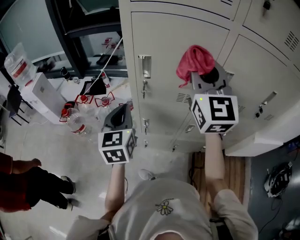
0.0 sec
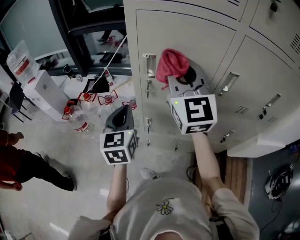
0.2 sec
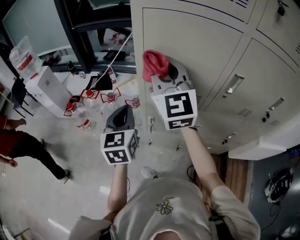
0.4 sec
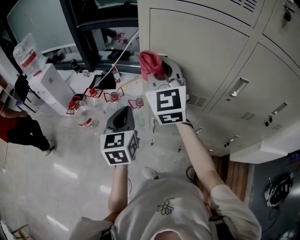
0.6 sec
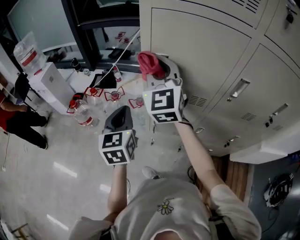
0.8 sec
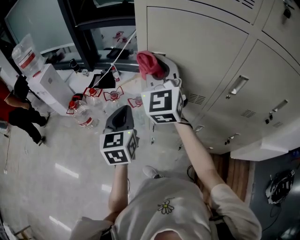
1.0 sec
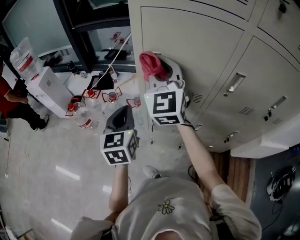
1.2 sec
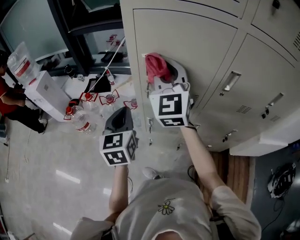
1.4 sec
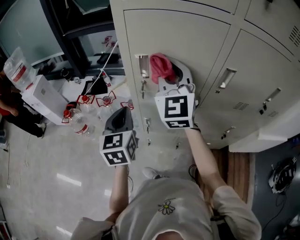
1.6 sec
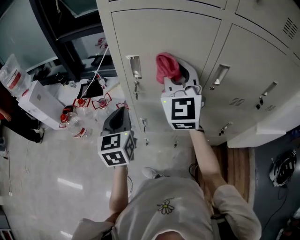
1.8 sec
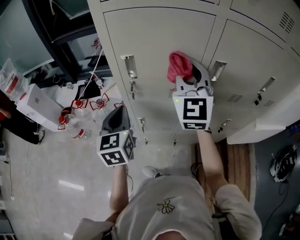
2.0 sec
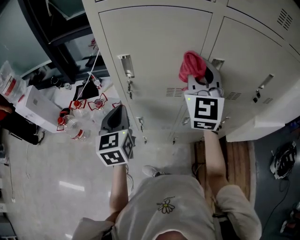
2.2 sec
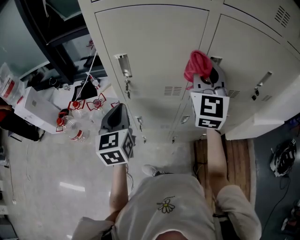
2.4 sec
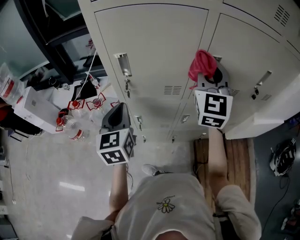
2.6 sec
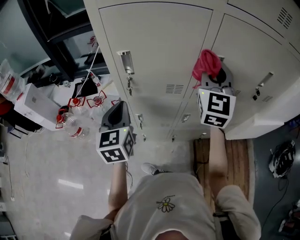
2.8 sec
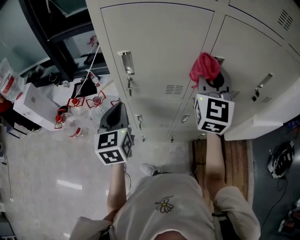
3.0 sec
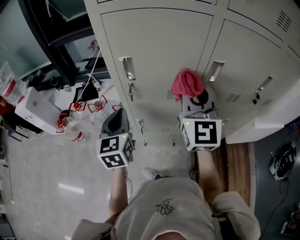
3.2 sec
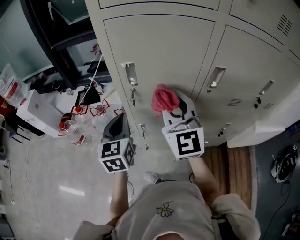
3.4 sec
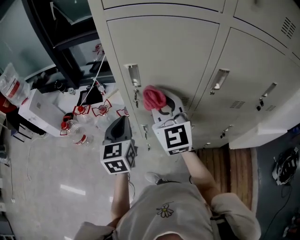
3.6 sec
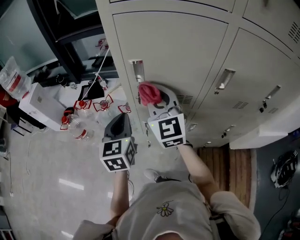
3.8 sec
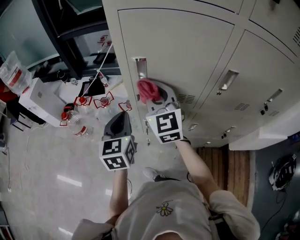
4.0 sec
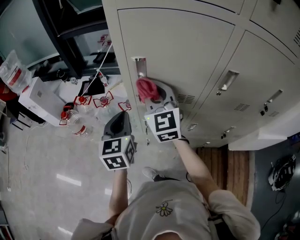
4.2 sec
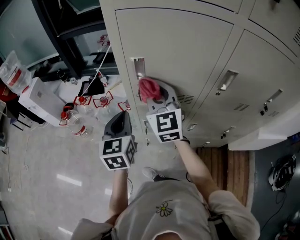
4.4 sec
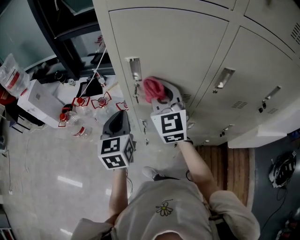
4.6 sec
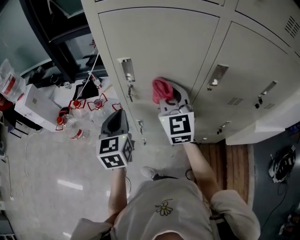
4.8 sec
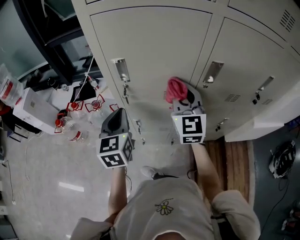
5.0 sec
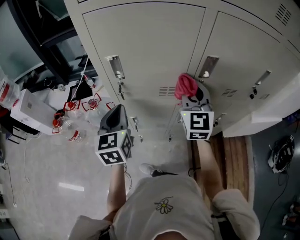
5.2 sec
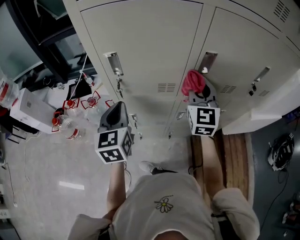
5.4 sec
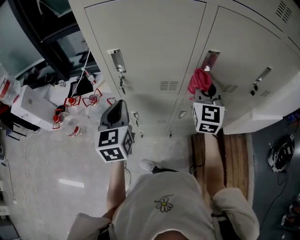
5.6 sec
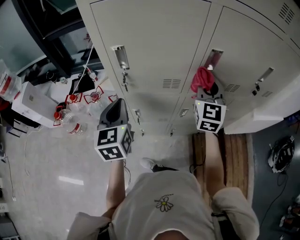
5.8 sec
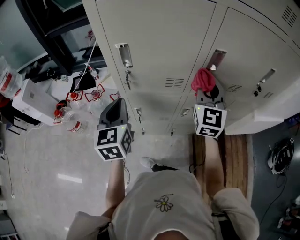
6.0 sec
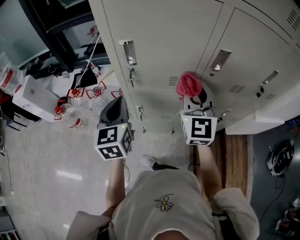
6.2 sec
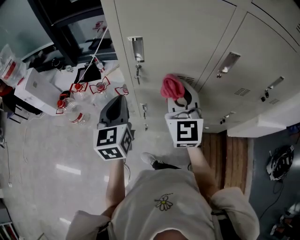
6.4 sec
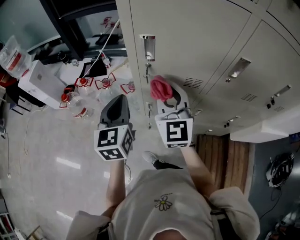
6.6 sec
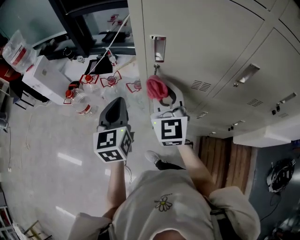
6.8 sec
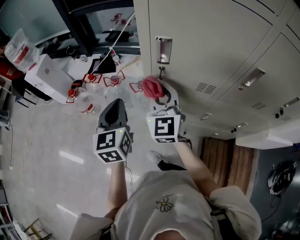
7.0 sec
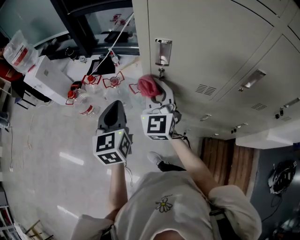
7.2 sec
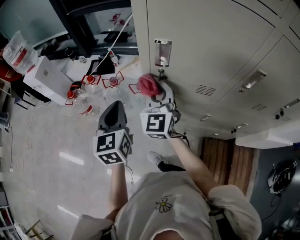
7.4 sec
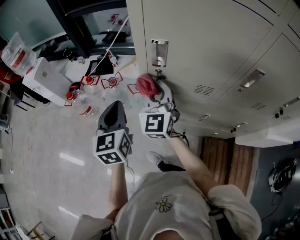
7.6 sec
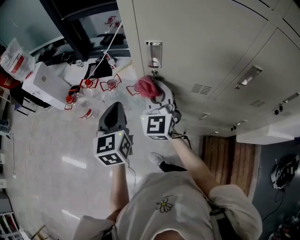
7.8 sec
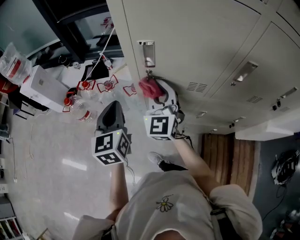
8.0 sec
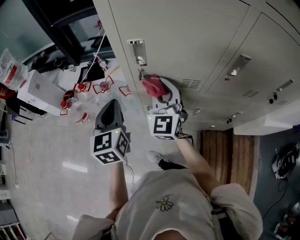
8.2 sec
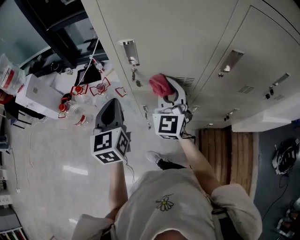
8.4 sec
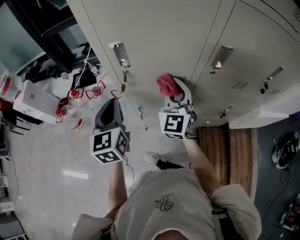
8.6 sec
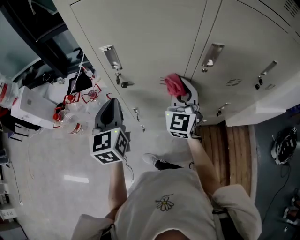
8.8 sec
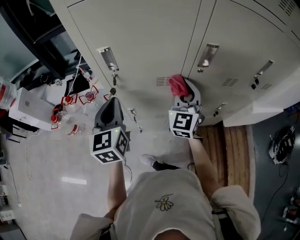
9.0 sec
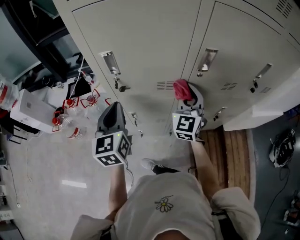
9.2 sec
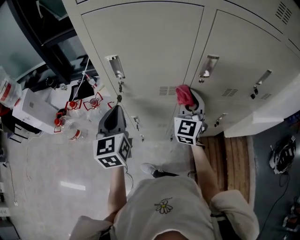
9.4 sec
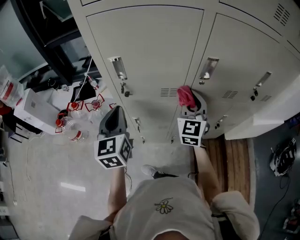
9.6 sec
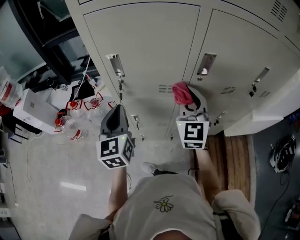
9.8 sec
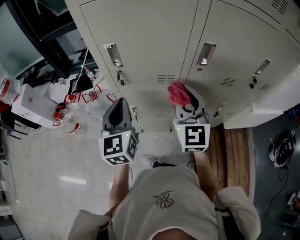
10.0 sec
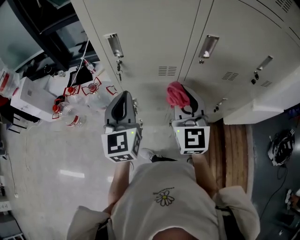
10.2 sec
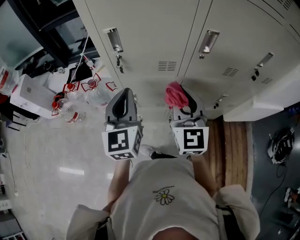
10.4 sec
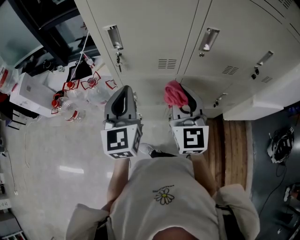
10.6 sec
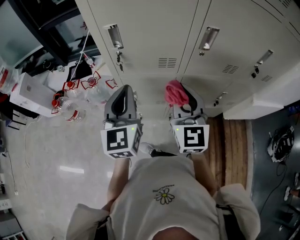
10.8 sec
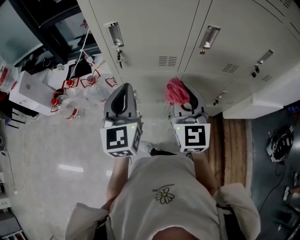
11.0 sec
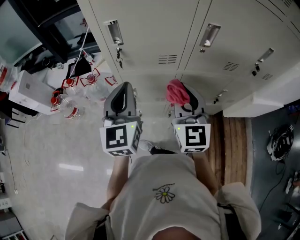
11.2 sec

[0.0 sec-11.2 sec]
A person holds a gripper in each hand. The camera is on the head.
0.0 sec to 1.6 sec: The right gripper is displaced downward, to the left and forward by approximately 10 cm.
1.6 sec to 3.2 sec: The right gripper moves to the right and backward, approximately 10 cm.
3.2 sec to 4.8 sec: The right gripper shifts roughly 10 cm downward, forward and to the left.
4.8 sec to 6.4 sec: The right gripper heads backward, covering roughly 5 cm, and reaches some 15 cm to the right, then returns.
6.4 sec to 8.0 sec: The right gripper heads to the left, forward and downward, covering roughly 15 cm, while the left gripper is displaced to the left by about 5 cm.
8.0 sec to 9.6 sec: The left gripper travels to the right by approximately 10 cm, while the right gripper heads to the right, covering about 25 cm, and rotates some 20 degrees.
9.6 sec to 11.2 sec: The left gripper shifts some 5 cm backward, while the right gripper moves backward and to the left, some 15 cm.

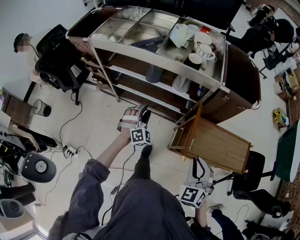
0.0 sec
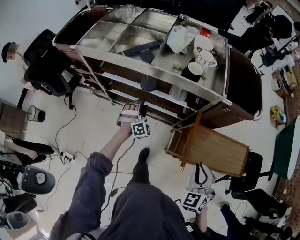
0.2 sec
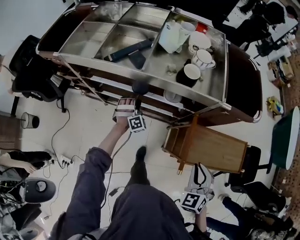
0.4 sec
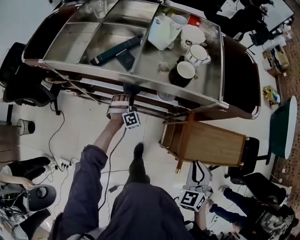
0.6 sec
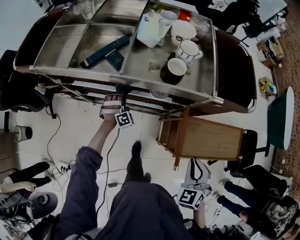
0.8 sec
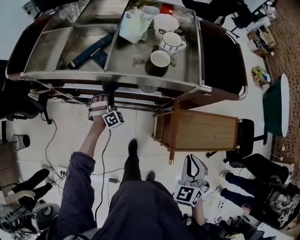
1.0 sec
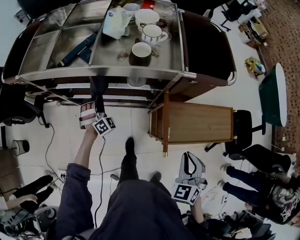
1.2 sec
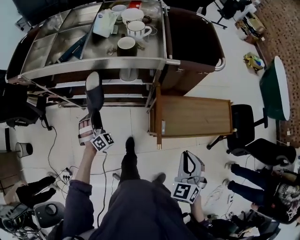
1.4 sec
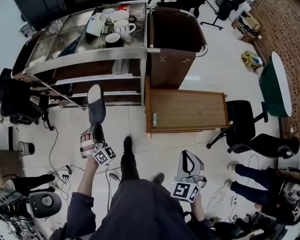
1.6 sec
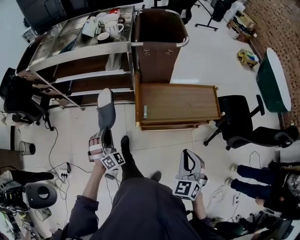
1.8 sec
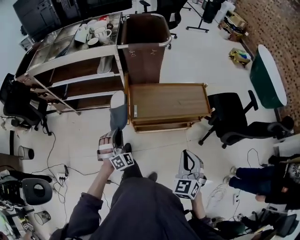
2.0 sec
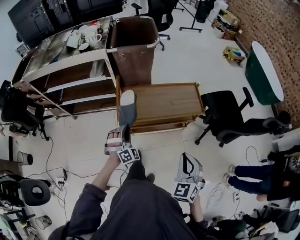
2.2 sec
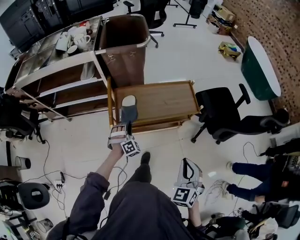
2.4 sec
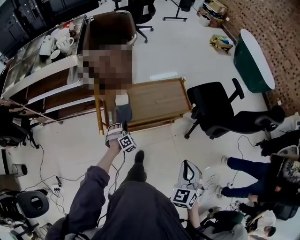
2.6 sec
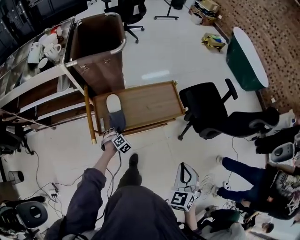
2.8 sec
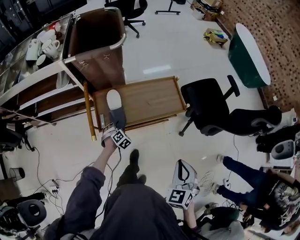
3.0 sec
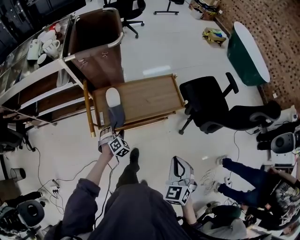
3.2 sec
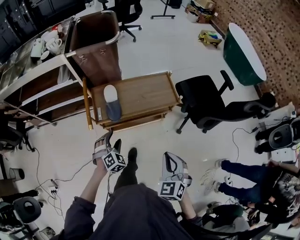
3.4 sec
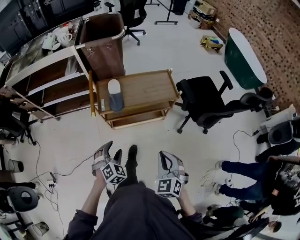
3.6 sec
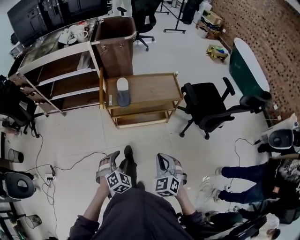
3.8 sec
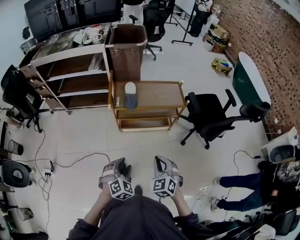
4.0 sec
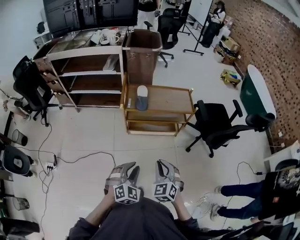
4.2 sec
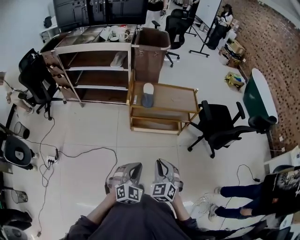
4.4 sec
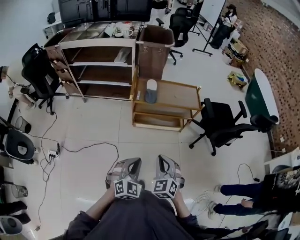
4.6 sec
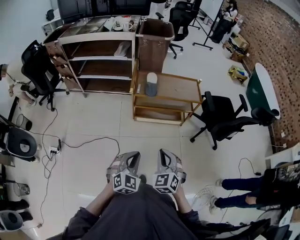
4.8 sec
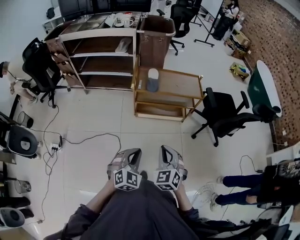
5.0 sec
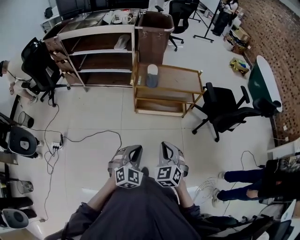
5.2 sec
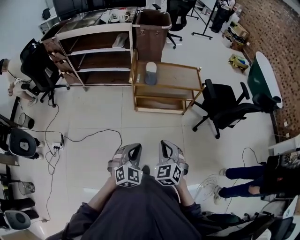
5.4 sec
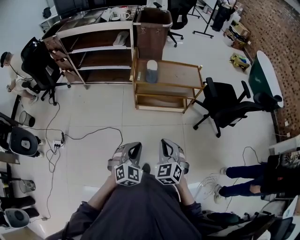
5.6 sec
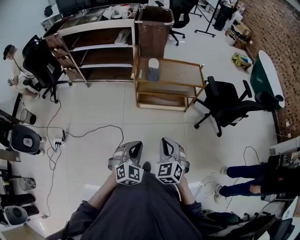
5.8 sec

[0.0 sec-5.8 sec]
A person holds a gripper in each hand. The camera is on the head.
0.0 sec to 1.4 sec: The right gripper goes roughly 10 cm to the right, and goes forward and returns, roughly 10 cm each way, while the left gripper goes forward and returns, about 25 cm each way, and closes.
1.4 sec to 2.8 sec: The left gripper moves to the right, roughly 50 cm, and tips its fingers downward by some 40 degrees; the right gripper moves to the right and backward, some 40 cm.
2.8 sec to 4.4 sec: The left gripper moves backward and upward, about 60 cm, tilts its fingers about 40 degrees upward, and closes up, while the right gripper shifts about 30 cm backward and to the left, and rotates approximately 30 degrees.
4.4 sec to 5.8 sec: The right gripper changes place by about 5 cm, while the left gripper ends up roughly 5 cm from where it was.

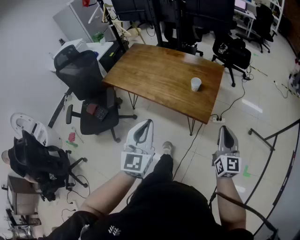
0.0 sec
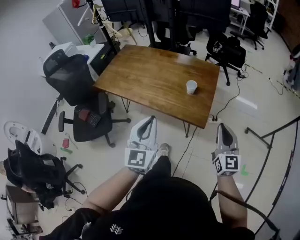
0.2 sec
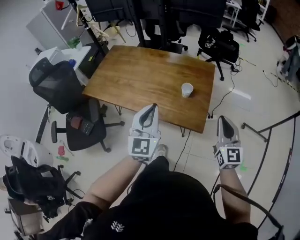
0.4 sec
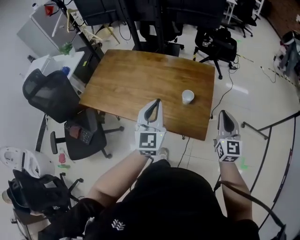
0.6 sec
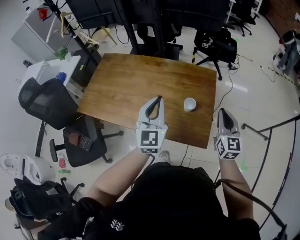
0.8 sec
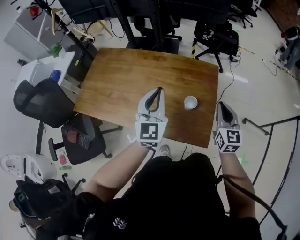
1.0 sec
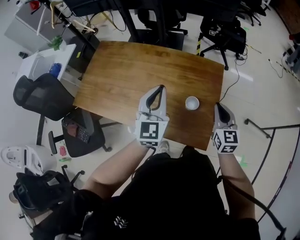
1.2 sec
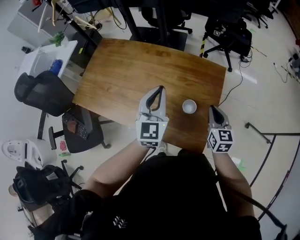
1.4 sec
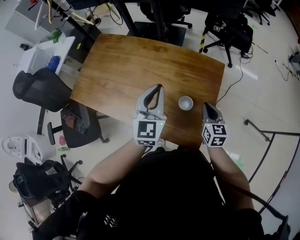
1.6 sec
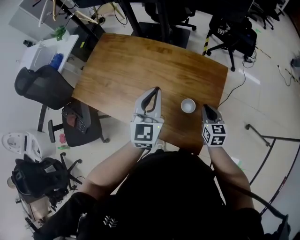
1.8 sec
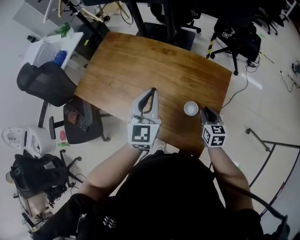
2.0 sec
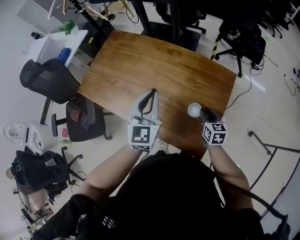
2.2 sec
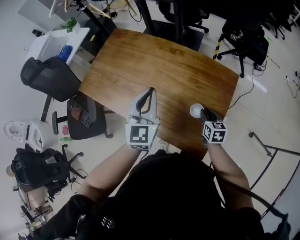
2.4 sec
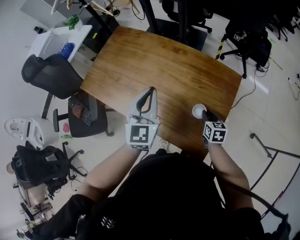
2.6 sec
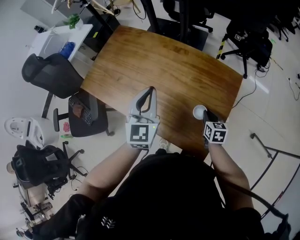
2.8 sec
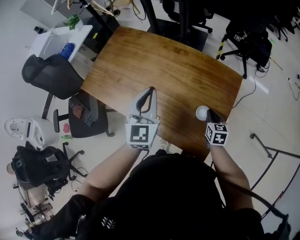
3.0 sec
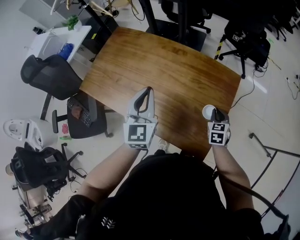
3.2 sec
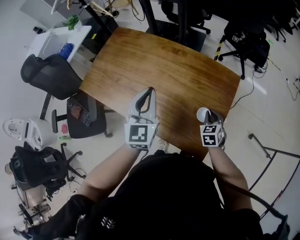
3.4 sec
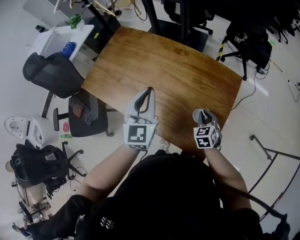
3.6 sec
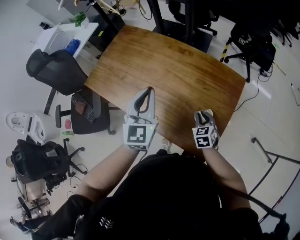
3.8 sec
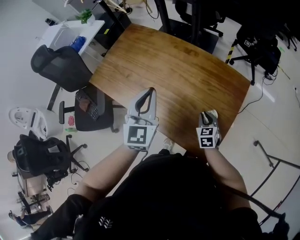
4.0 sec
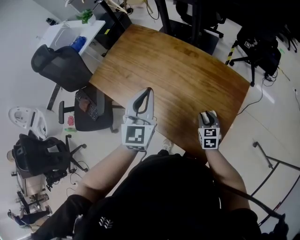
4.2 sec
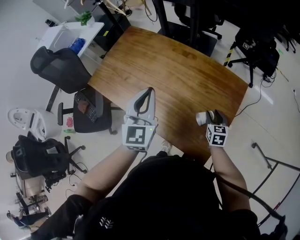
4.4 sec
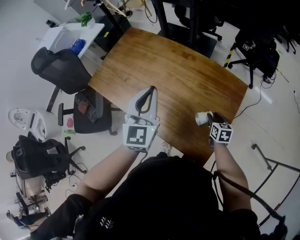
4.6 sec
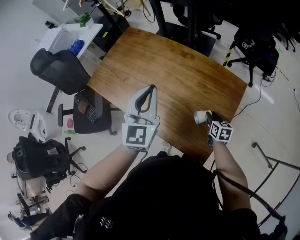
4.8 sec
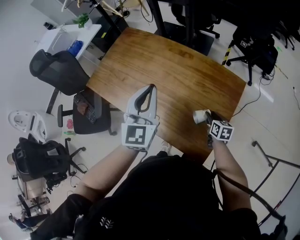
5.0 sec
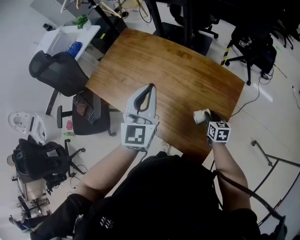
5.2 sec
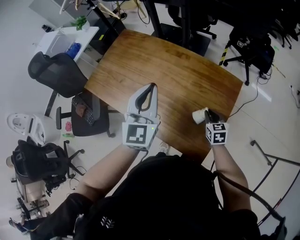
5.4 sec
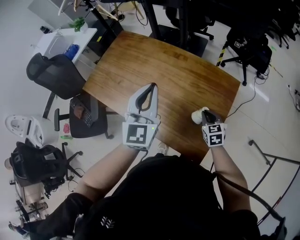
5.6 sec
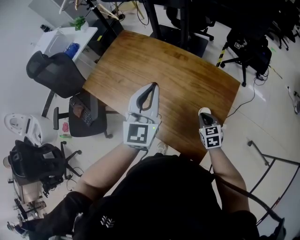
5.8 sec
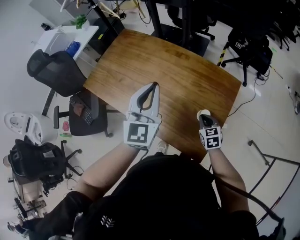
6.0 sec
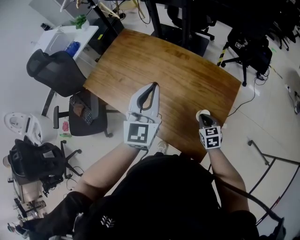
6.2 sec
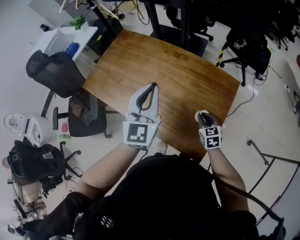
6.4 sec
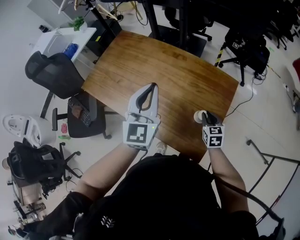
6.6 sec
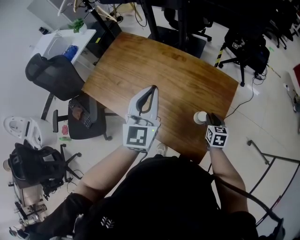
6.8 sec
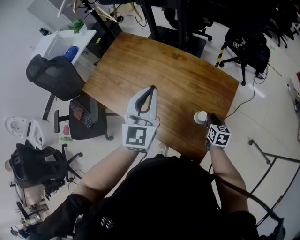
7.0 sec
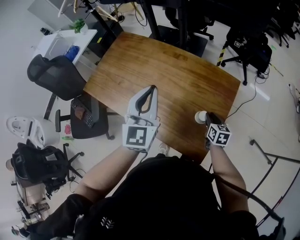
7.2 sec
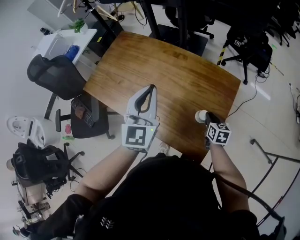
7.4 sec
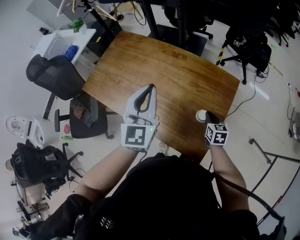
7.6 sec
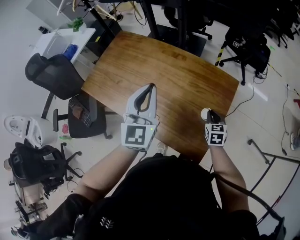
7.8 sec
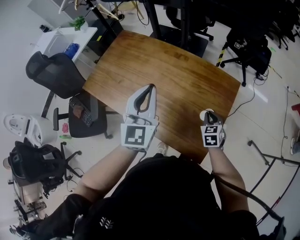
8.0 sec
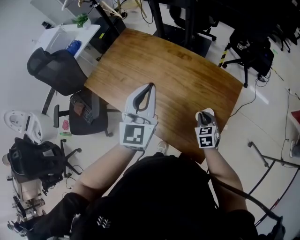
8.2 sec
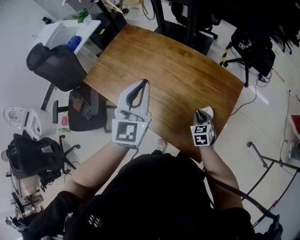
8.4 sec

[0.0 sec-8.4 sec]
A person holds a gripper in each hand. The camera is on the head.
0.0 sec to 1.4 sec: The grippers both shift forward by roughly 35 cm. The right gripper changes its angle by about 20 degrees.
1.4 sec to 2.8 sec: The left gripper heads to the left, covering approximately 10 cm. The right gripper goes some 15 cm downward, and changes its angle by about 20 degrees.
2.8 sec to 4.2 sec: The right gripper heads to the left, covering roughly 5 cm.
4.2 sec to 5.6 sec: The right gripper moves roughly 5 cm, and closes its fingers. The left gripper goes approximately 5 cm to the right.
5.6 sec to 7.0 sec: The right gripper changes place by approximately 5 cm, and changes its angle by approximately 20 degrees.
7.0 sec to 8.4 sec: The right gripper heads to the left, covering about 10 cm, and swivels approximately 30 degrees.
